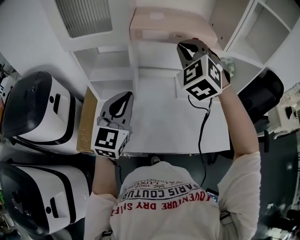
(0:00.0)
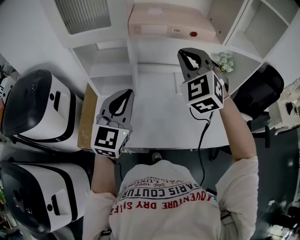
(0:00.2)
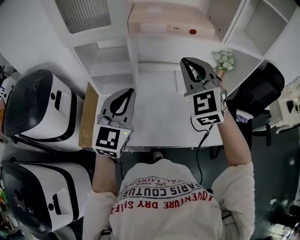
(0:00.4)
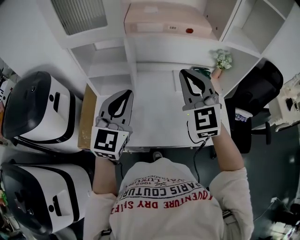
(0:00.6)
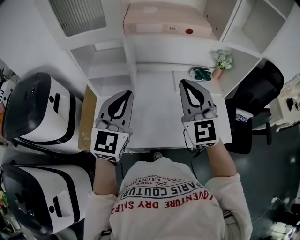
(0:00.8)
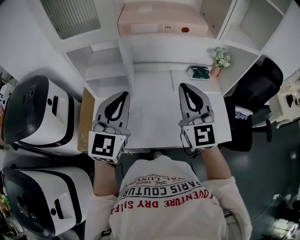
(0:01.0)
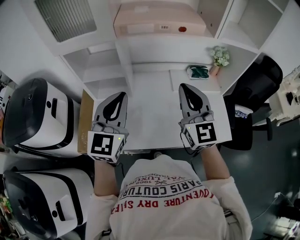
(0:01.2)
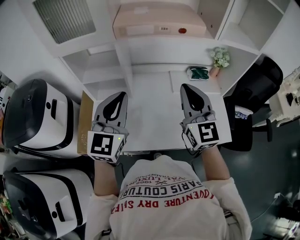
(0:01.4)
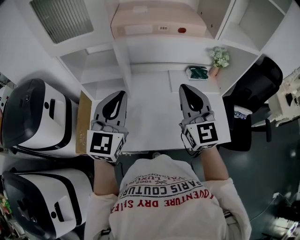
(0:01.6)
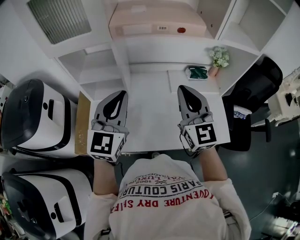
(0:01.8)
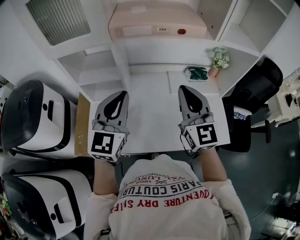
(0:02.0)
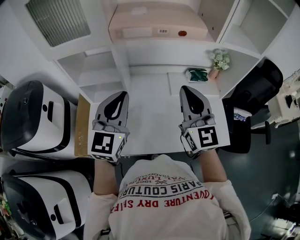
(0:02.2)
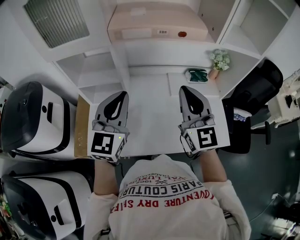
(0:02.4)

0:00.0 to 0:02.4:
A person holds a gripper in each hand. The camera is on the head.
0:00.0 to 0:01.2: The right gripper is displaced backward, downward and to the right by about 15 cm, and twists about 40 degrees clockwise, seen from behind.
0:01.2 to 0:02.4: The grippers move only a little.

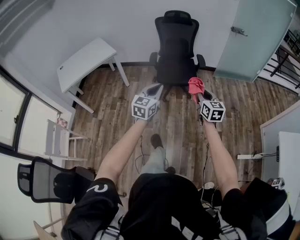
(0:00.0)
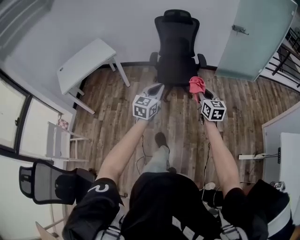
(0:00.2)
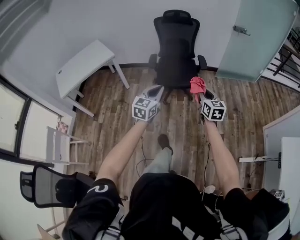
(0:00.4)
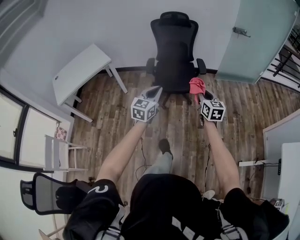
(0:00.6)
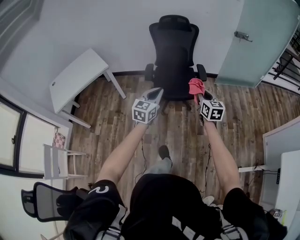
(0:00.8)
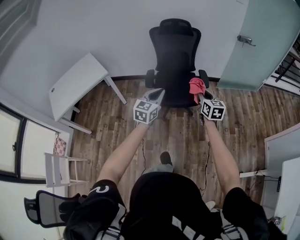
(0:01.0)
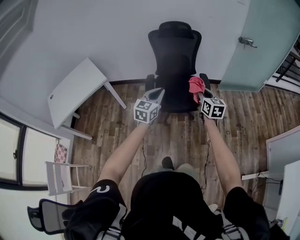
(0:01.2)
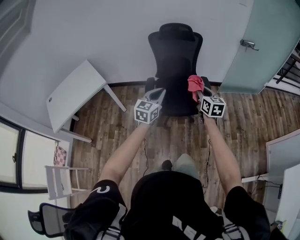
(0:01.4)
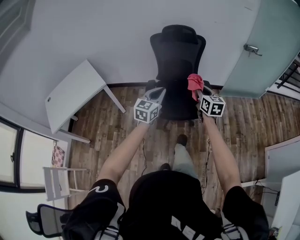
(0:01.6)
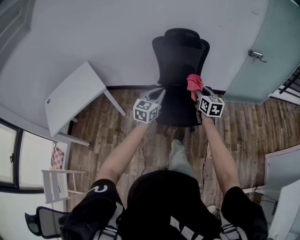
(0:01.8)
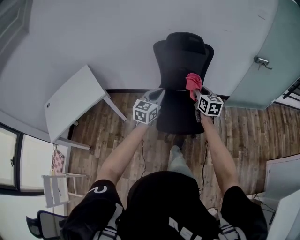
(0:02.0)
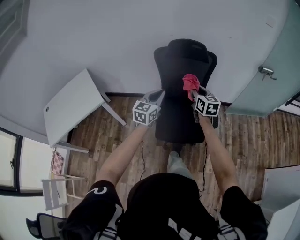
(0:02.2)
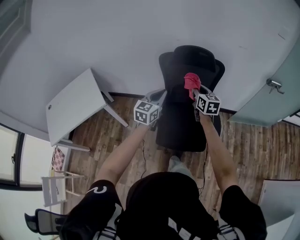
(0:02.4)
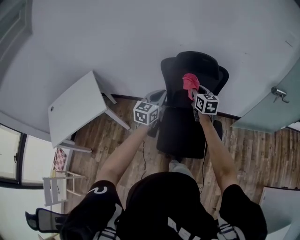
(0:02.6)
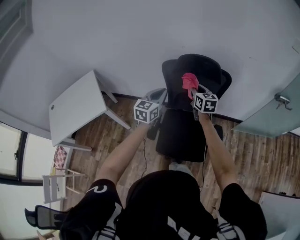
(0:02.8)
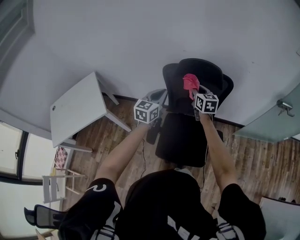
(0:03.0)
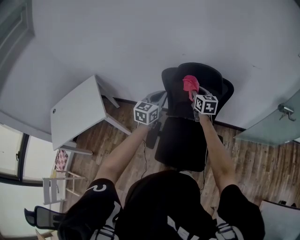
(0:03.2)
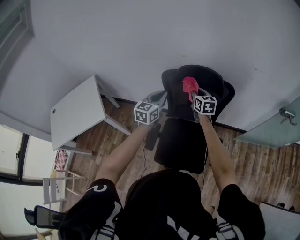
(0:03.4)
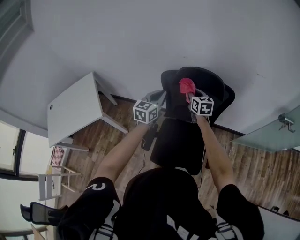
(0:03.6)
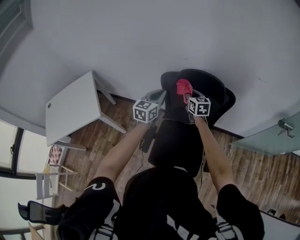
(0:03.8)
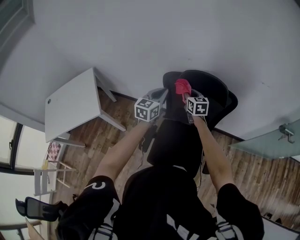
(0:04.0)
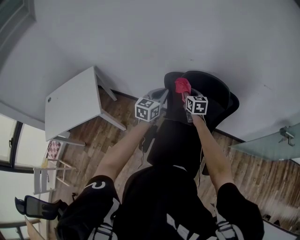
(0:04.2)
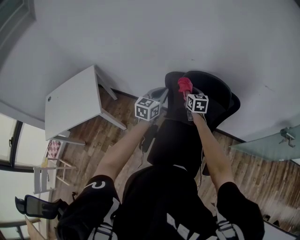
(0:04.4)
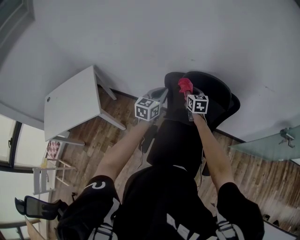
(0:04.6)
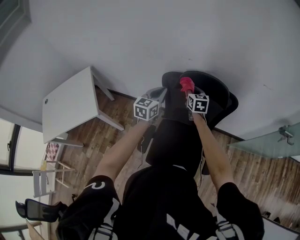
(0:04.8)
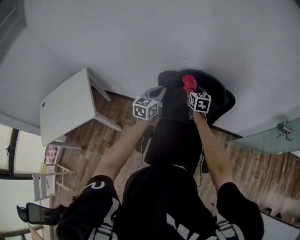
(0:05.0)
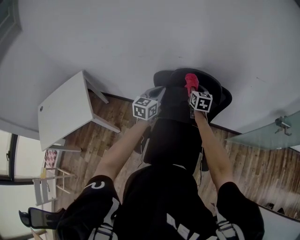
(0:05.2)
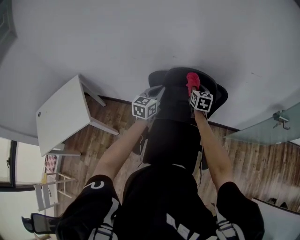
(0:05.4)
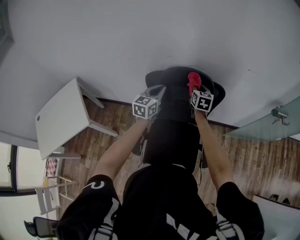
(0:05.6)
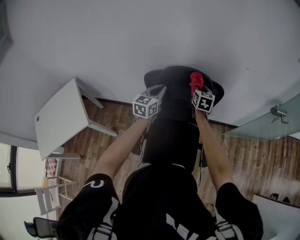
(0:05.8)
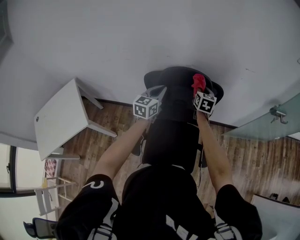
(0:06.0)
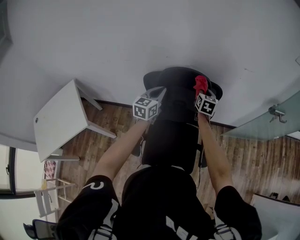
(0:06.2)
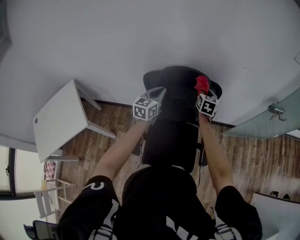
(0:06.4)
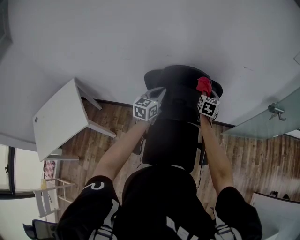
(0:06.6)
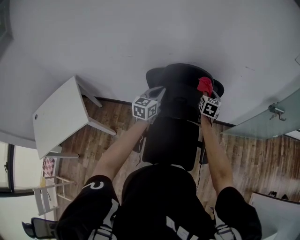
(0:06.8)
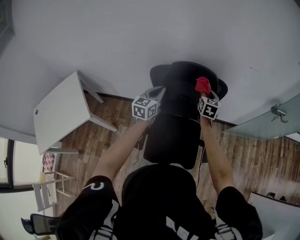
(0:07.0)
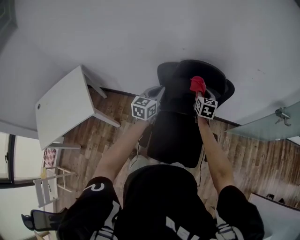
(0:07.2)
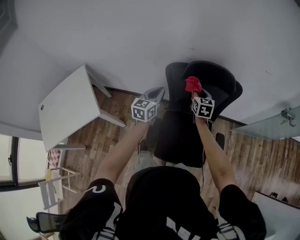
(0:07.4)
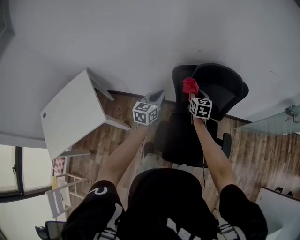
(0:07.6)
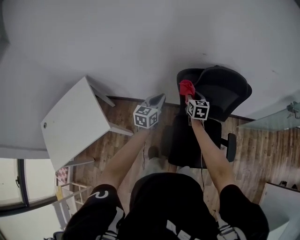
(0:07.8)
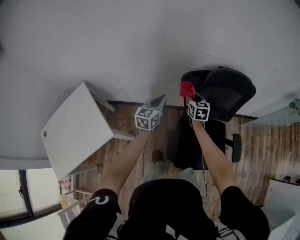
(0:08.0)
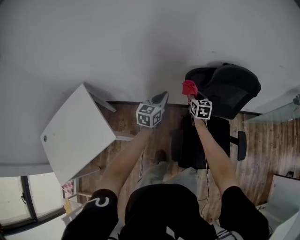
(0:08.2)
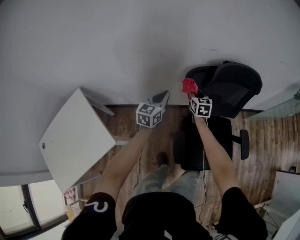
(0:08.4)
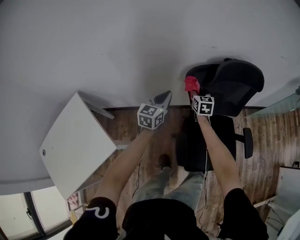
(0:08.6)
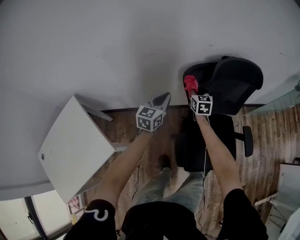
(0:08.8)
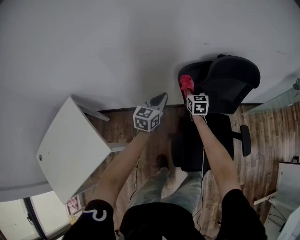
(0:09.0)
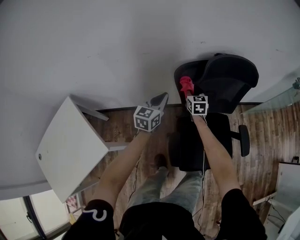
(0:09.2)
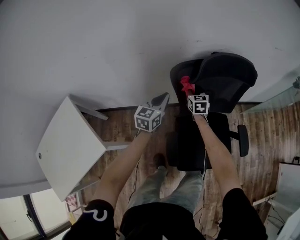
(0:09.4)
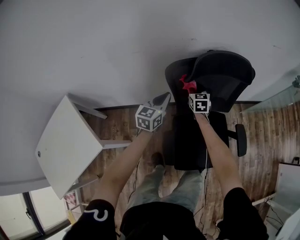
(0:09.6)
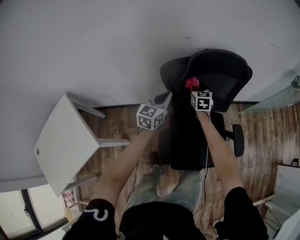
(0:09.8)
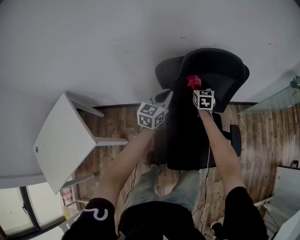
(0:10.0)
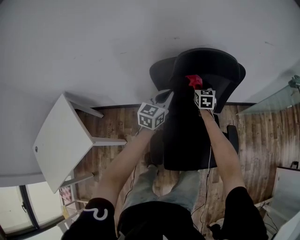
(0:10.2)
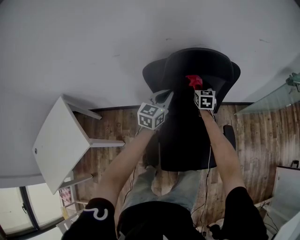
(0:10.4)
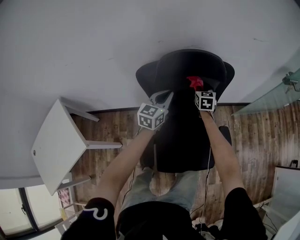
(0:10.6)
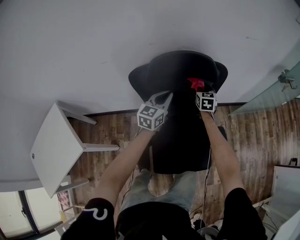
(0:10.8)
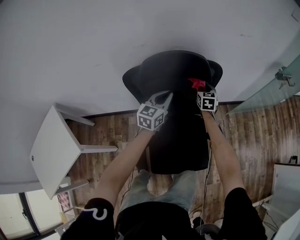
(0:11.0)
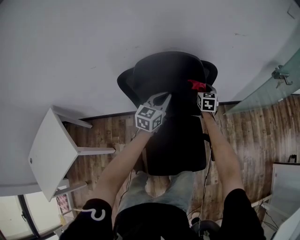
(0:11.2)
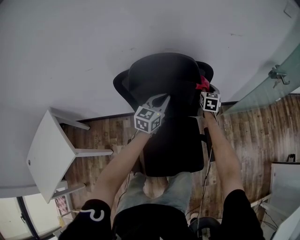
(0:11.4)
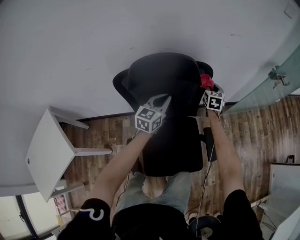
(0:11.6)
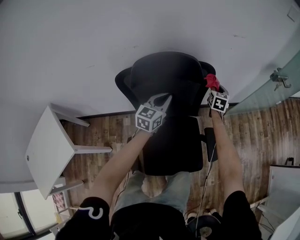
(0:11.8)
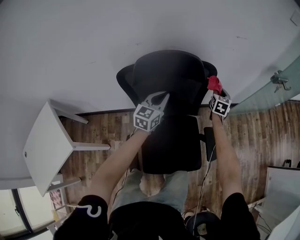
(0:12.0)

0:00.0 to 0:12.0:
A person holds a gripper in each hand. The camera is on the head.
0:00.0 to 0:01.6: The two grippers travel together, forward, about 40 cm.
0:01.6 to 0:03.0: Both grippers are carried forward, roughly 50 cm.
0:03.0 to 0:04.4: The left gripper heads forward, covering roughly 10 cm. The right gripper heads forward, downward and to the left, covering approximately 15 cm.
0:04.4 to 0:06.0: The right gripper shifts approximately 20 cm to the right, and rotates about 30 degrees; the left gripper moves to the right, some 10 cm.
0:06.0 to 0:07.6: Both grippers travel together to the left and backward, about 20 cm.
0:07.6 to 0:09.0: The right gripper goes about 15 cm downward, to the left and forward. Meanwhile the left gripper travels downward, forward and to the left by about 15 cm.
0:09.0 to 0:10.4: Both grippers move to the right, some 20 cm.
0:10.4 to 0:12.0: The right gripper goes approximately 25 cm to the right, and rotates about 20 degrees. Meanwhile the left gripper goes approximately 10 cm to the right.

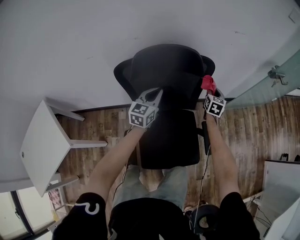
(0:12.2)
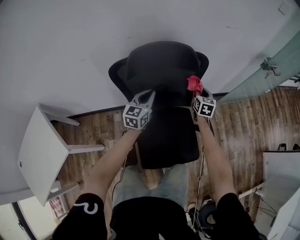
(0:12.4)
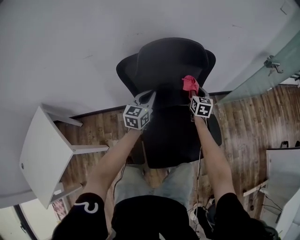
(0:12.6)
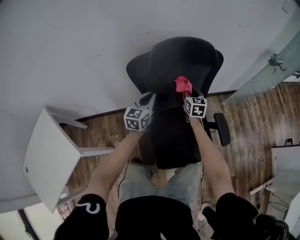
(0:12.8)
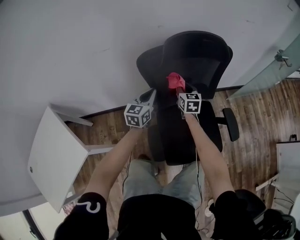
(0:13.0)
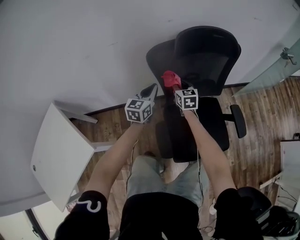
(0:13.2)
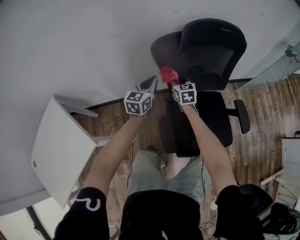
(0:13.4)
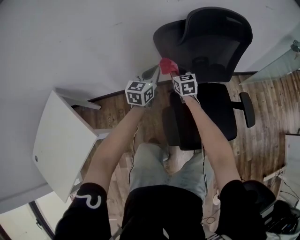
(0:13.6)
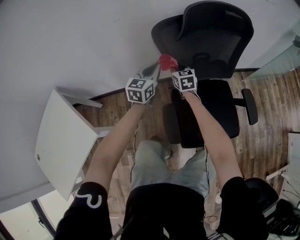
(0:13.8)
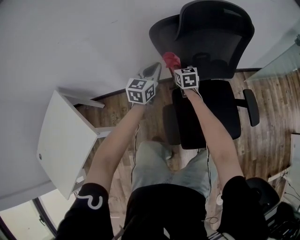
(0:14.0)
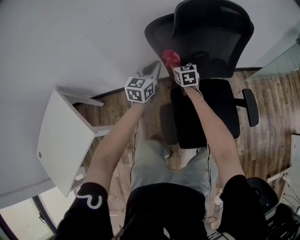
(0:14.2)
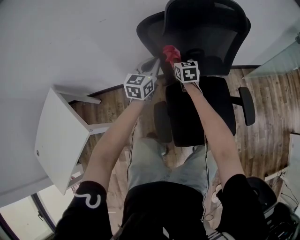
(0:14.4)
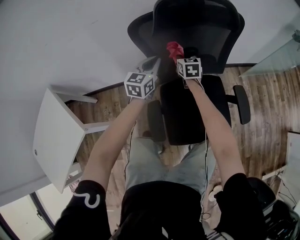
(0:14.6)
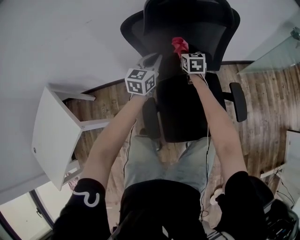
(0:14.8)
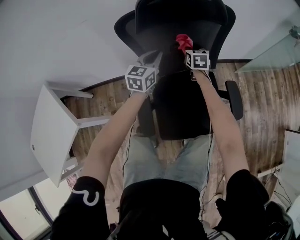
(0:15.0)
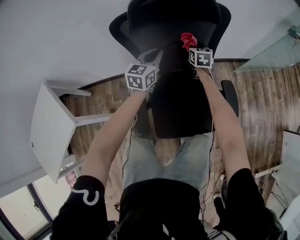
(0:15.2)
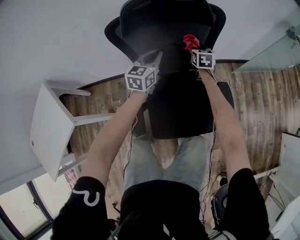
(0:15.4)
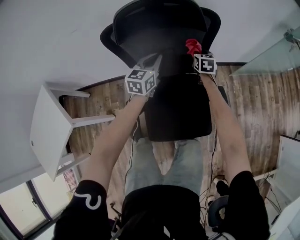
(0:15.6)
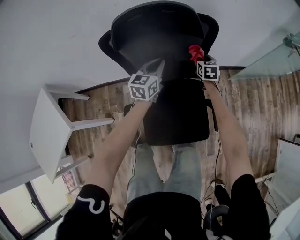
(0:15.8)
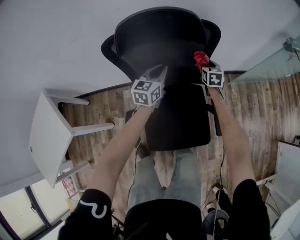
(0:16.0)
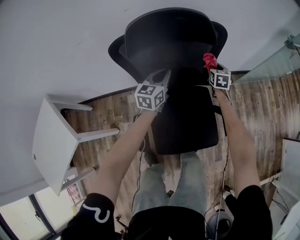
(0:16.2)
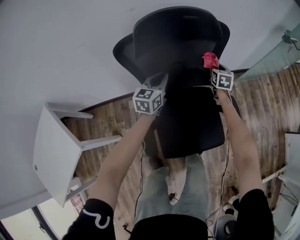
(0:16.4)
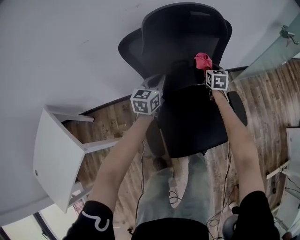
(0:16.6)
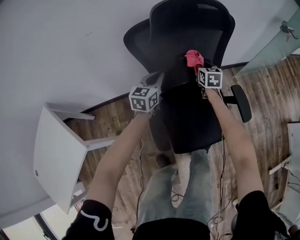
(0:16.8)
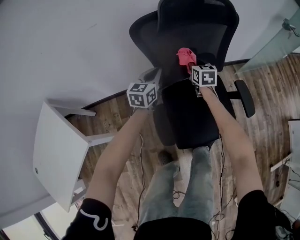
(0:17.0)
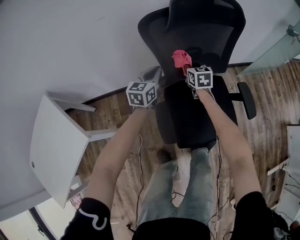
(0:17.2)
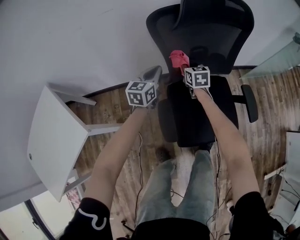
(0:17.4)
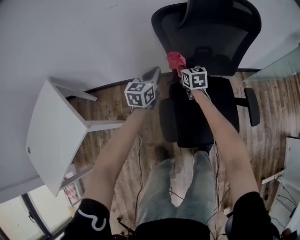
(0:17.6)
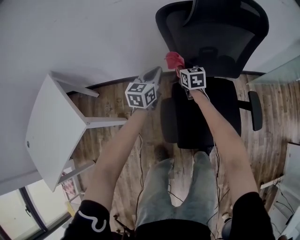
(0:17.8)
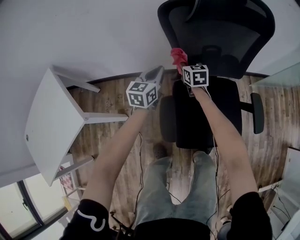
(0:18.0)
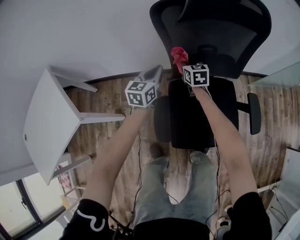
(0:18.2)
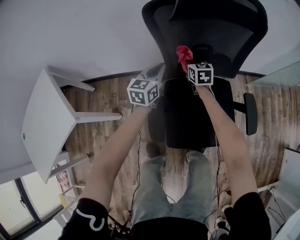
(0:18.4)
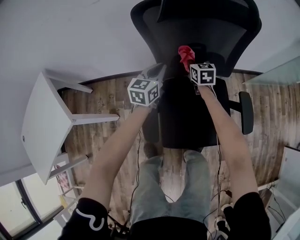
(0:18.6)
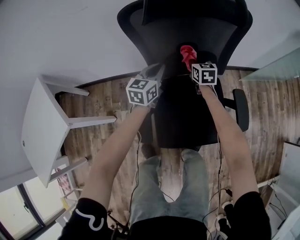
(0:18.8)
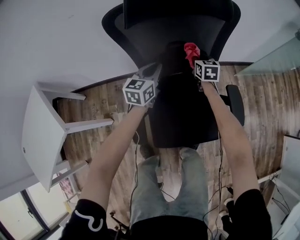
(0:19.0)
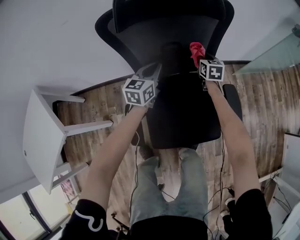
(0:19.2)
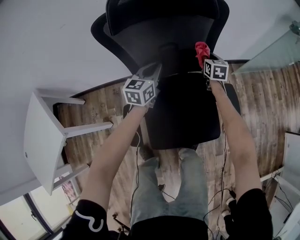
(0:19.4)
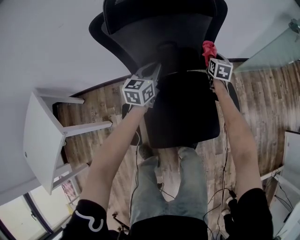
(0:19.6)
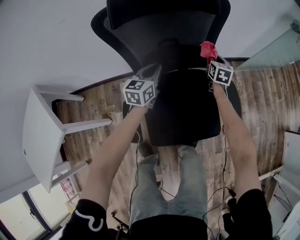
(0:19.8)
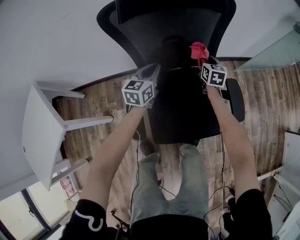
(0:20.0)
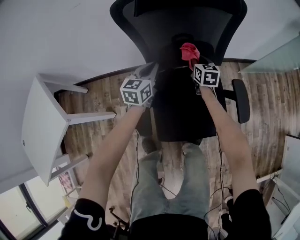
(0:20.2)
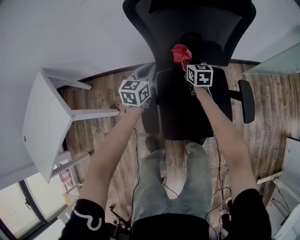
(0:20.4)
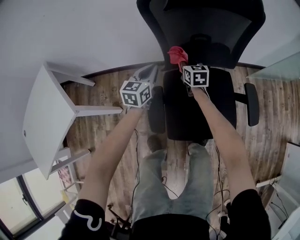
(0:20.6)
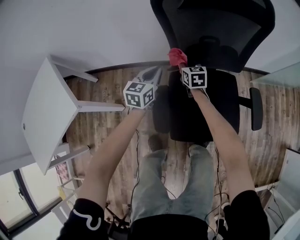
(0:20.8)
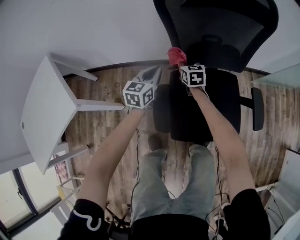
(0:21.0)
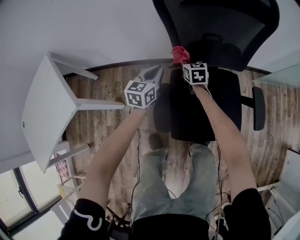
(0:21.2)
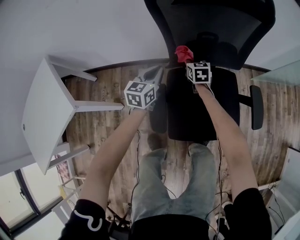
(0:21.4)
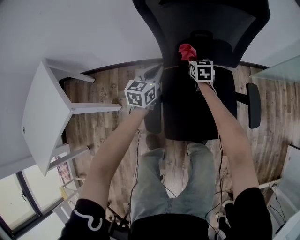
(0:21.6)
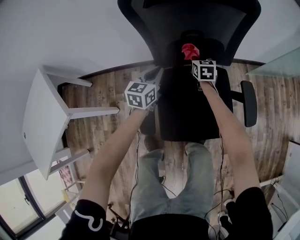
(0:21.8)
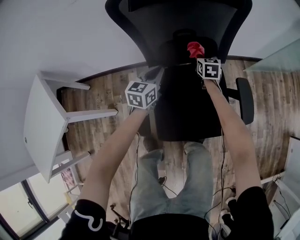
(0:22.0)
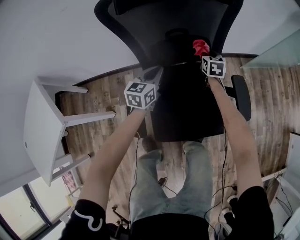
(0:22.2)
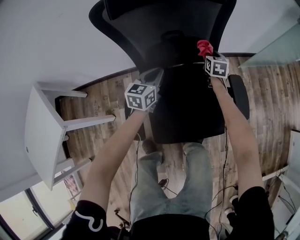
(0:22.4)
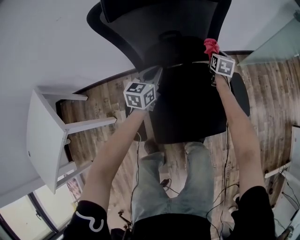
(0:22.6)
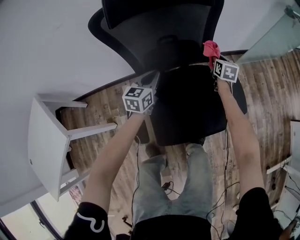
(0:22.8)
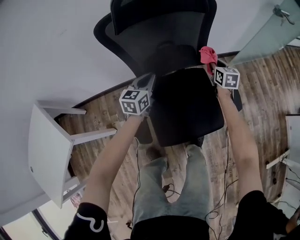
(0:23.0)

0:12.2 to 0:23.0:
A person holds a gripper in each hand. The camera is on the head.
0:12.2 to 0:13.8: The right gripper shifts some 40 cm to the left, and swivels about 30 degrees. Meanwhile the left gripper heads to the left, covering roughly 20 cm.
0:13.8 to 0:15.2: The two grippers go approximately 25 cm to the right.
0:15.2 to 0:16.8: The right gripper moves backward, some 5 cm, and moves roughly 10 cm to the right and comes back. Meanwhile the left gripper heads to the left, covering some 5 cm.
0:16.8 to 0:18.4: The right gripper travels to the left and downward by roughly 15 cm.
0:18.4 to 0:20.0: The right gripper heads to the right, covering roughly 25 cm. Meanwhile the left gripper moves to the right, some 10 cm.
0:20.0 to 0:21.4: The right gripper heads to the left, covering approximately 25 cm, while the left gripper is displaced to the left and backward by roughly 15 cm.
0:21.4 to 0:23.0: The right gripper is displaced to the right by roughly 30 cm, and swivels roughly 20 degrees; the left gripper is displaced to the right by roughly 10 cm.
